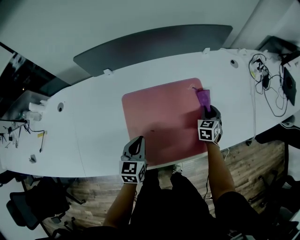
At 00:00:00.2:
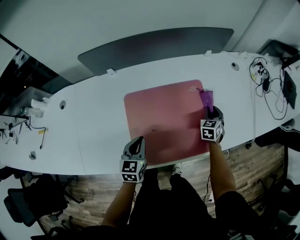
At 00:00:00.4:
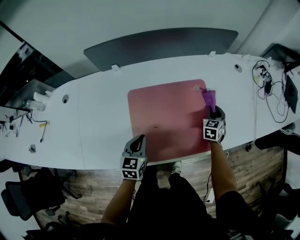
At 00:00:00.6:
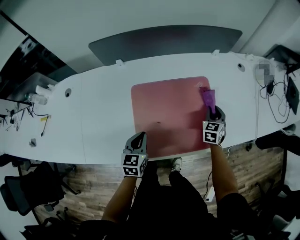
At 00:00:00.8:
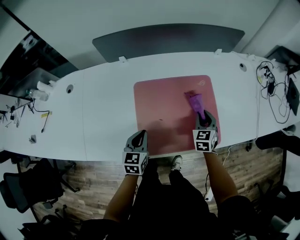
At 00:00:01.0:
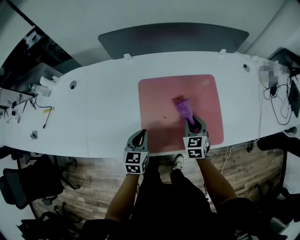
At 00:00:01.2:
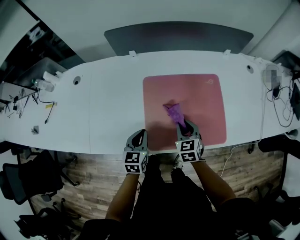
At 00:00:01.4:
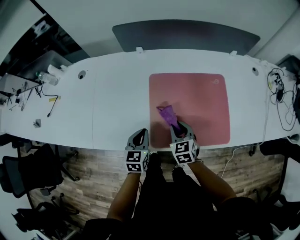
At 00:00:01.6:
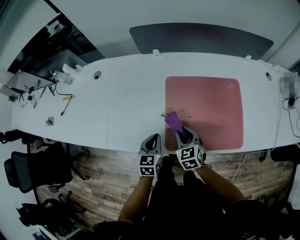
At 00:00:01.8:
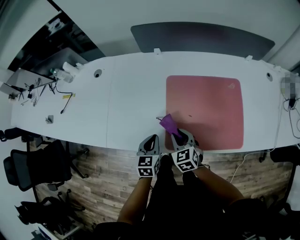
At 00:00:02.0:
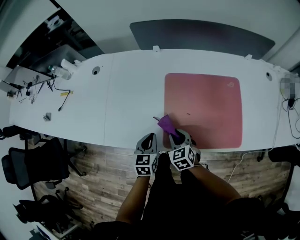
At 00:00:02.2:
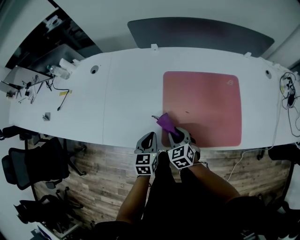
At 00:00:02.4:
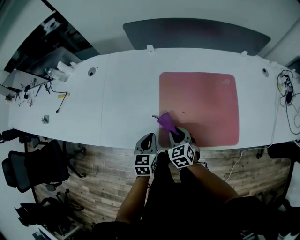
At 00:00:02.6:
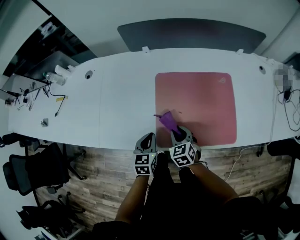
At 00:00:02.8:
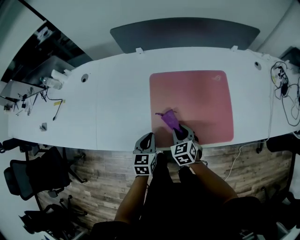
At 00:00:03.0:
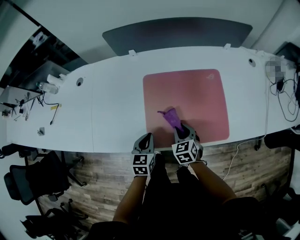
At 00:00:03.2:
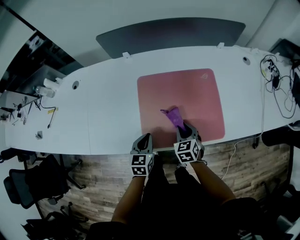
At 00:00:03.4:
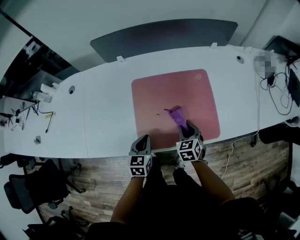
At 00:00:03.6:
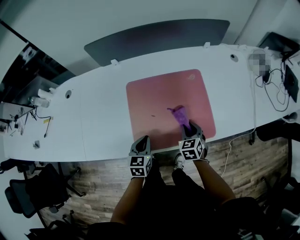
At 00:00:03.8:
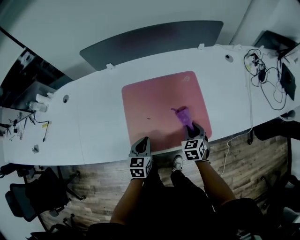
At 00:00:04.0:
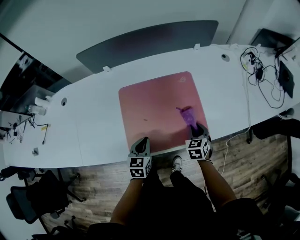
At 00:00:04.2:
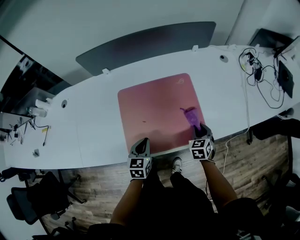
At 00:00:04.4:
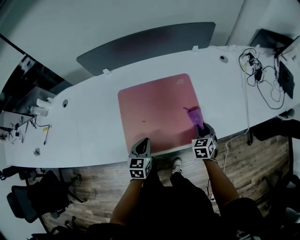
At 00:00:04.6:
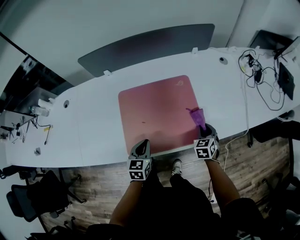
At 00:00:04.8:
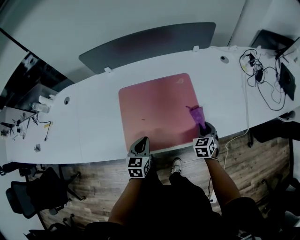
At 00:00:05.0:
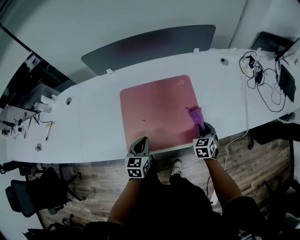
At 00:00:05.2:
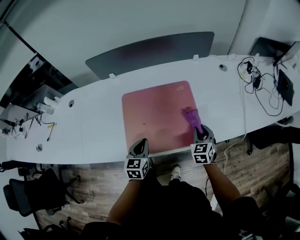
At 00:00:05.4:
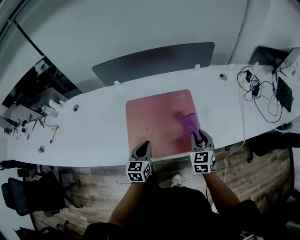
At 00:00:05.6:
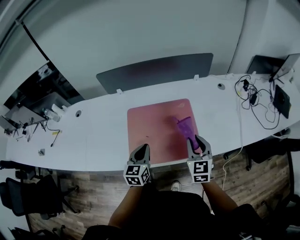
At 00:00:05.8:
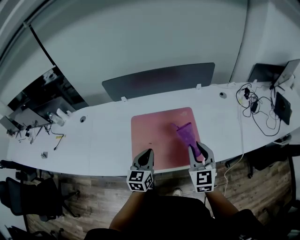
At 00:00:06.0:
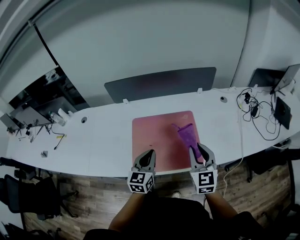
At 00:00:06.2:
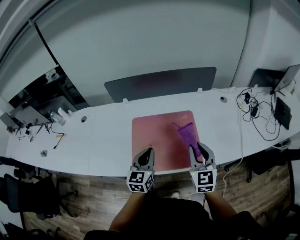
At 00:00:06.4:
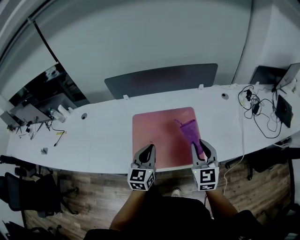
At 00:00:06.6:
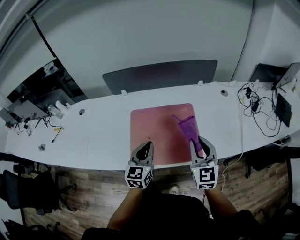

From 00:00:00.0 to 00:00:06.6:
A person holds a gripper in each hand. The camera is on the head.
From 00:00:00.0 to 00:00:01.6: The right gripper ends up some 35 cm from where it was, and turns by some 40 degrees; the left gripper moves about 15 cm.
From 00:00:01.6 to 00:00:03.2: The right gripper is displaced to the right by roughly 10 cm. The left gripper travels to the right by some 5 cm.
From 00:00:03.2 to 00:00:05.0: The right gripper shifts some 20 cm to the right. The left gripper is displaced to the right by approximately 10 cm.
From 00:00:05.0 to 00:00:06.6: The right gripper shifts about 25 cm upward, and points its fingers approximately 30 degrees further upward. Meanwhile the left gripper heads upward, covering about 15 cm, and turns by some 20 degrees.

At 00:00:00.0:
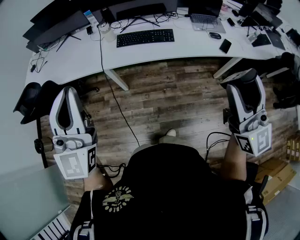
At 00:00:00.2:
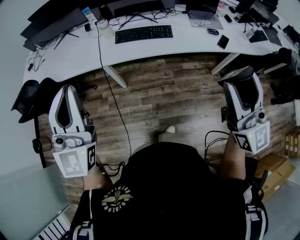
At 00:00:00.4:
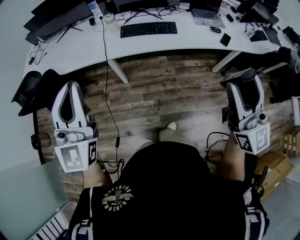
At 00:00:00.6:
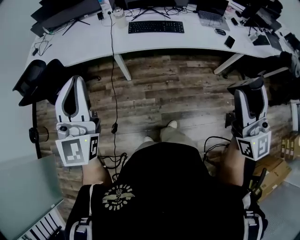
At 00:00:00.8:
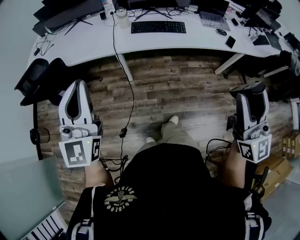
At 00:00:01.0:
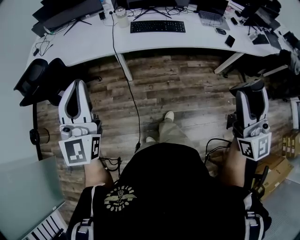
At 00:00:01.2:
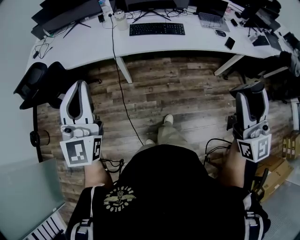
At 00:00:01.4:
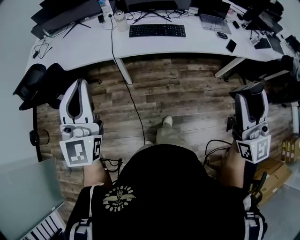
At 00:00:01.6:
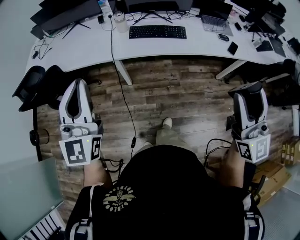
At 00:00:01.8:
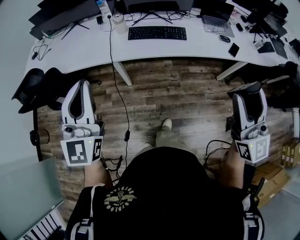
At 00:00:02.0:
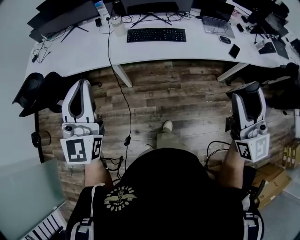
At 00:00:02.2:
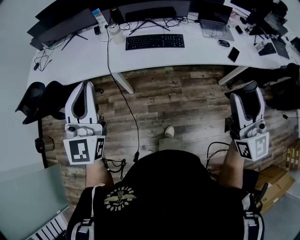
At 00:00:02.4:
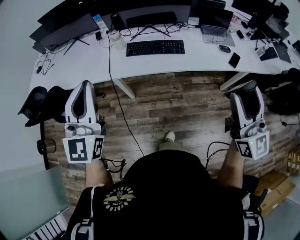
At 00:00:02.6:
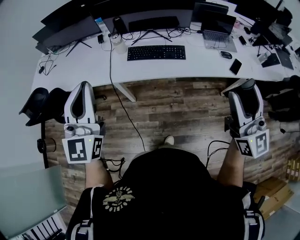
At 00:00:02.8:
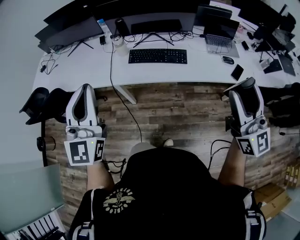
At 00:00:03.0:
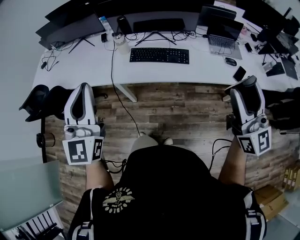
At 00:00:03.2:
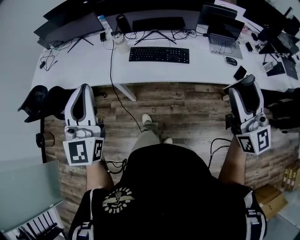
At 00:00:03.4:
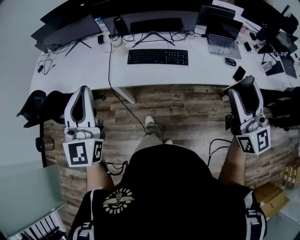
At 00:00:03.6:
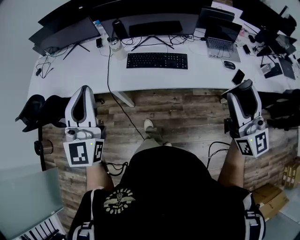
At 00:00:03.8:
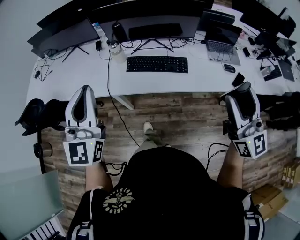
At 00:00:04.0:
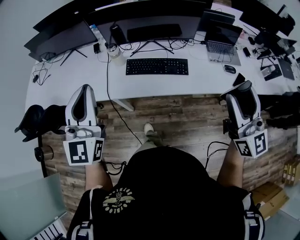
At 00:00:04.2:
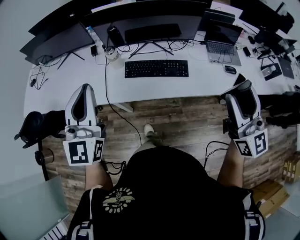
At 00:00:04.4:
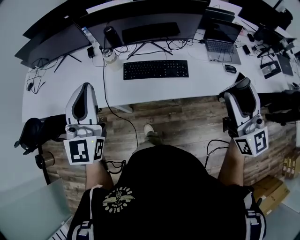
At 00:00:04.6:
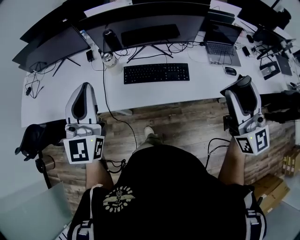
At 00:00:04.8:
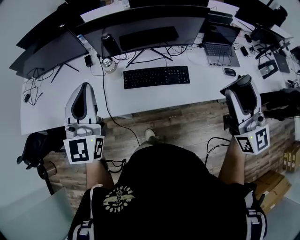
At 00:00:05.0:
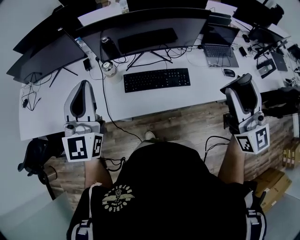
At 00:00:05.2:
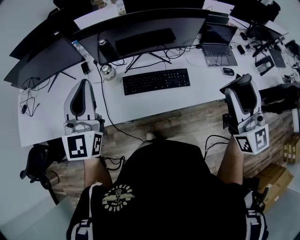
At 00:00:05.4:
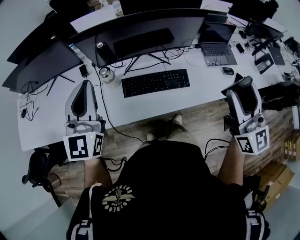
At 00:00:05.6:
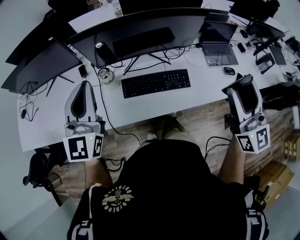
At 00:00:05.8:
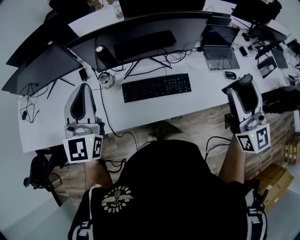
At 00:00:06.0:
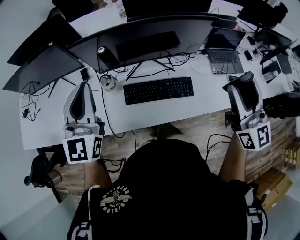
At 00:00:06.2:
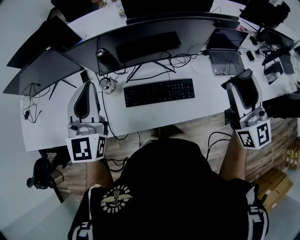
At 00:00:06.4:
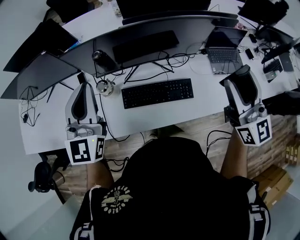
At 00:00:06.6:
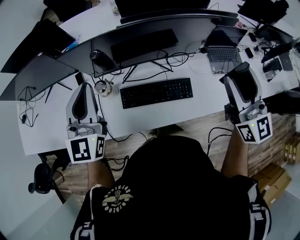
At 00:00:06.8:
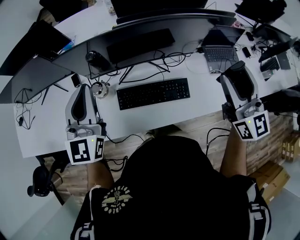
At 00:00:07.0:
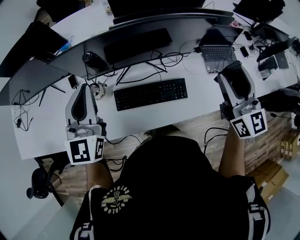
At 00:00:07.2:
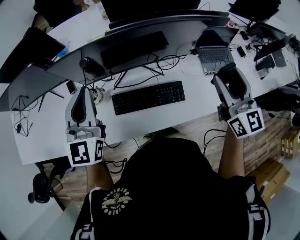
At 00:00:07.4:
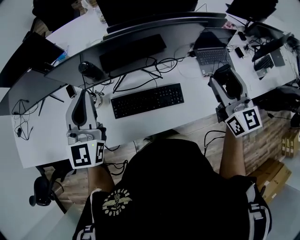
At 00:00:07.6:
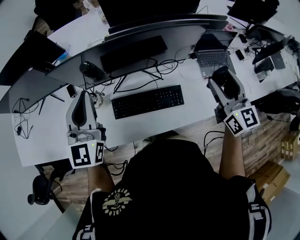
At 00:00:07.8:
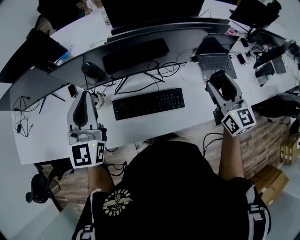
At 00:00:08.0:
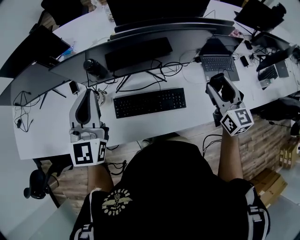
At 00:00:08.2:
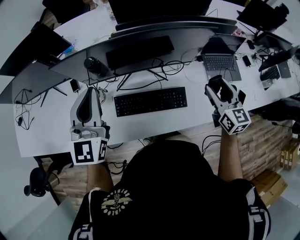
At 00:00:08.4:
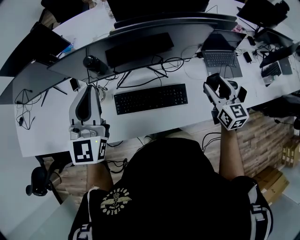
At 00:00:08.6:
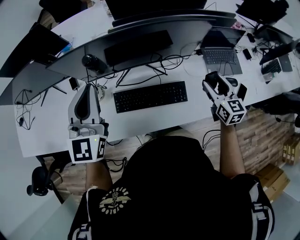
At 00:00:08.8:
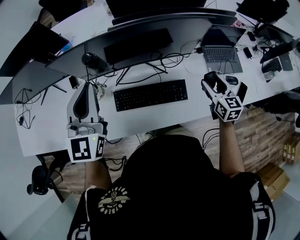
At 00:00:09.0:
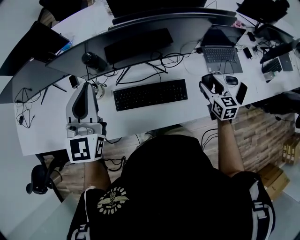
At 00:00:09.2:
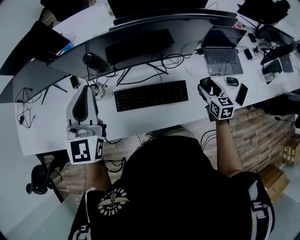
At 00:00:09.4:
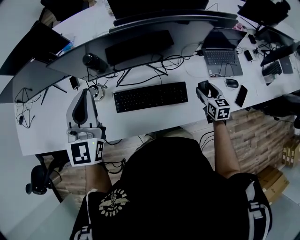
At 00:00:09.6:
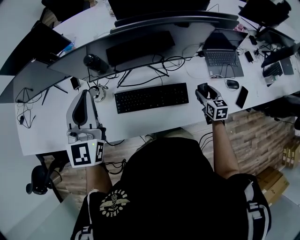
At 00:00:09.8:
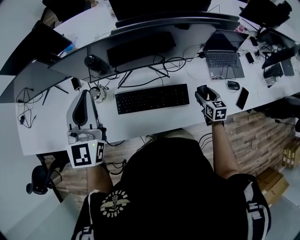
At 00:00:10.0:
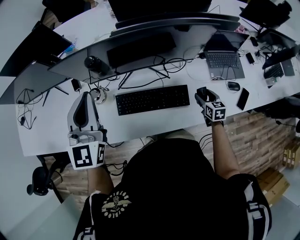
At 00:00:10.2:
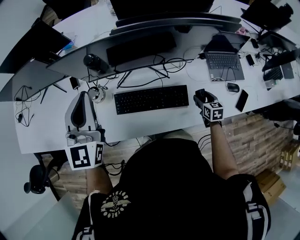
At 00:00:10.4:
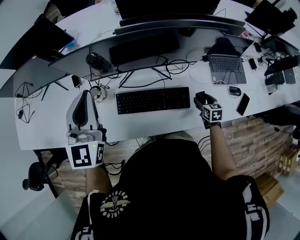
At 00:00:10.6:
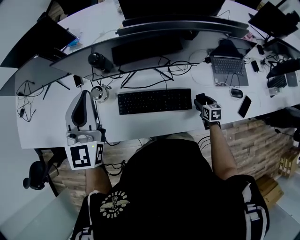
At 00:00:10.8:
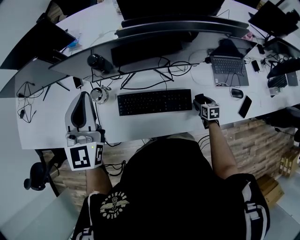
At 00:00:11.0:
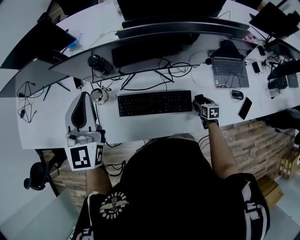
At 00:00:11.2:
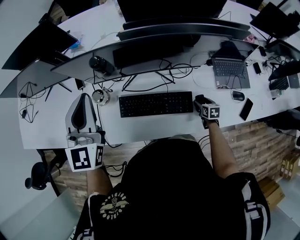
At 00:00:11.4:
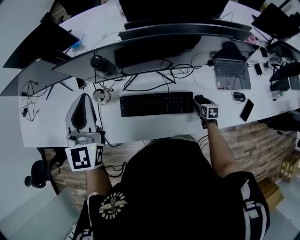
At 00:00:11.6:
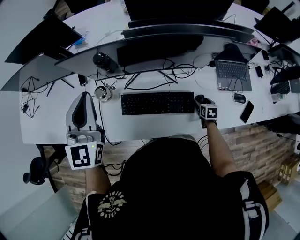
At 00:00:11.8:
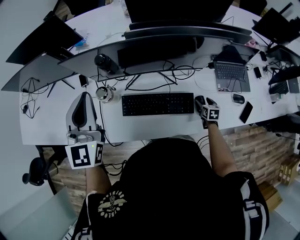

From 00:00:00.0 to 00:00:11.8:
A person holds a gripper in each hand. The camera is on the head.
From 00:00:00.0 to 00:00:01.4: The left gripper goes roughly 10 cm to the left. Meanwhile the right gripper shifts about 10 cm to the left and backward.
From 00:00:01.4 to 00:00:03.0: Both grippers travel together forward and to the right, roughly 20 cm.
From 00:00:03.0 to 00:00:04.4: Both grippers travel together forward, some 15 cm.
From 00:00:04.4 to 00:00:06.0: Both grippers move forward, about 20 cm.
From 00:00:06.0 to 00:00:07.4: The left gripper travels forward and to the right by approximately 10 cm. The right gripper heads forward and downward, covering approximately 10 cm.
From 00:00:07.4 to 00:00:08.8: The right gripper moves downward, about 20 cm, and swivels roughly 20 degrees.
From 00:00:08.8 to 00:00:10.4: The right gripper goes approximately 20 cm downward, and changes its angle by roughly 20 degrees.
From 00:00:10.4 to 00:00:11.8: The right gripper is displaced downward by about 5 cm.

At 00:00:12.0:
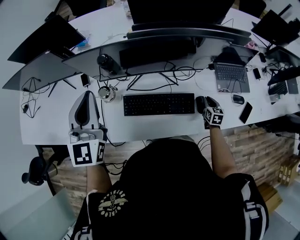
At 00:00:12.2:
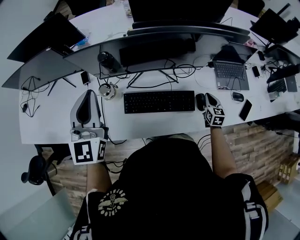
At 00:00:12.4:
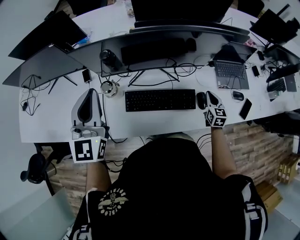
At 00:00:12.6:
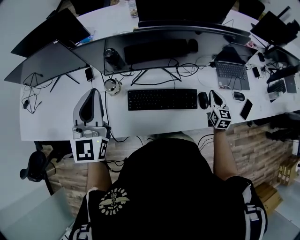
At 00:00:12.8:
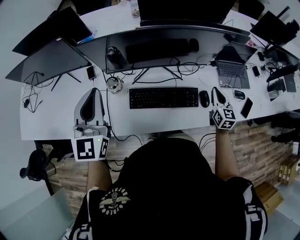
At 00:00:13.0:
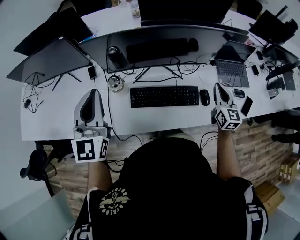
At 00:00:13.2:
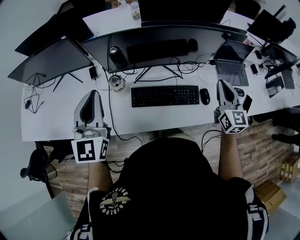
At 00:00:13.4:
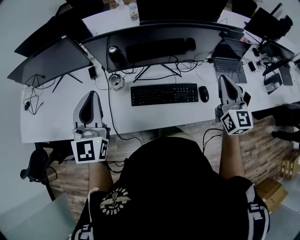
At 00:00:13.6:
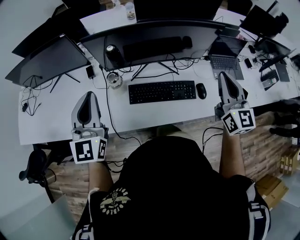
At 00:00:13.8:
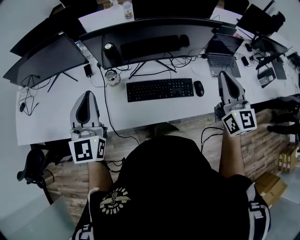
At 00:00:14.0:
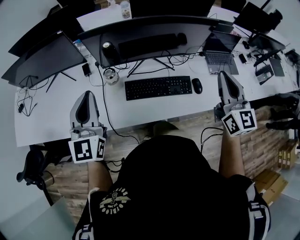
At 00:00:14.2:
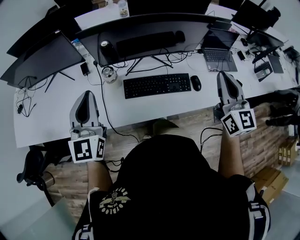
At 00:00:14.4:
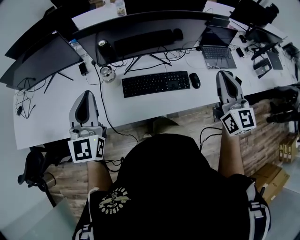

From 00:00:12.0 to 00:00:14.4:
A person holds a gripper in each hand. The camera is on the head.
From 00:00:12.0 to 00:00:13.2: The right gripper is displaced upward by approximately 30 cm, and angles its fingers upward, by some 40 degrees. The left gripper goes approximately 10 cm backward.
From 00:00:13.2 to 00:00:14.4: The left gripper moves backward, roughly 5 cm, while the right gripper is displaced backward and upward by approximately 15 cm.

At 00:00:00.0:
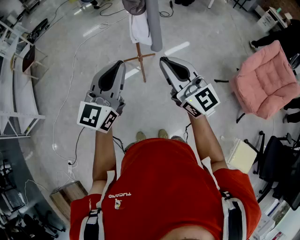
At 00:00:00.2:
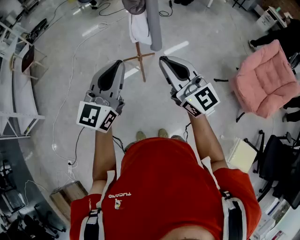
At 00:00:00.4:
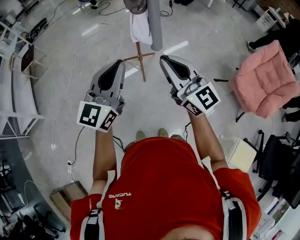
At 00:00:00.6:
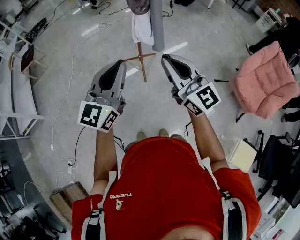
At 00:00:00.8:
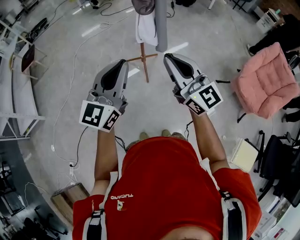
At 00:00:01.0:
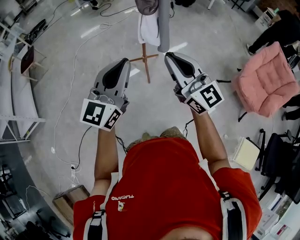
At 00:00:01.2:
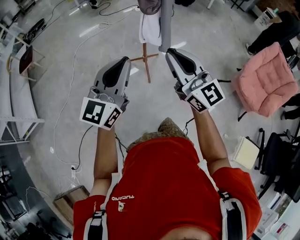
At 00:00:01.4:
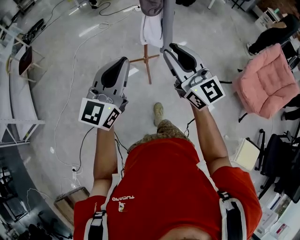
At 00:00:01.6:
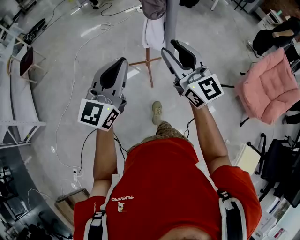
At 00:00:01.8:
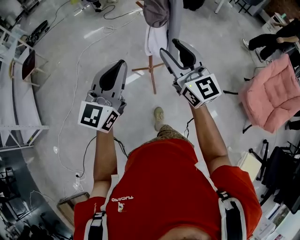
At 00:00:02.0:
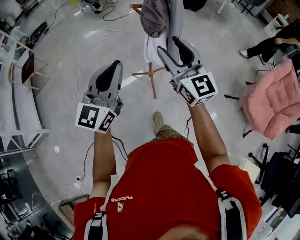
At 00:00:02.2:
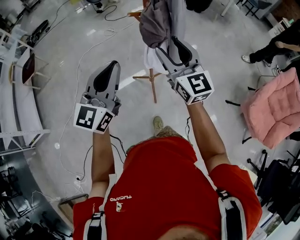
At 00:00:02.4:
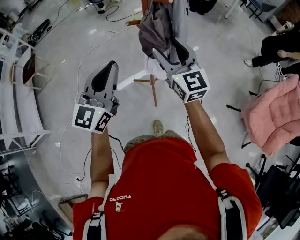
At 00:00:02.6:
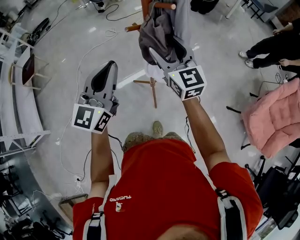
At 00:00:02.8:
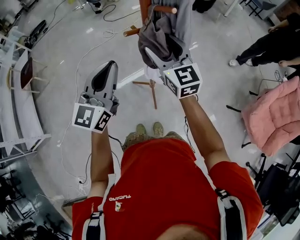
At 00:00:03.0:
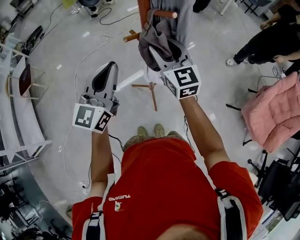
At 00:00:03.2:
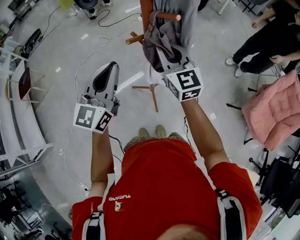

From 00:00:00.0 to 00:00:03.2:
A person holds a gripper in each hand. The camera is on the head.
From 00:00:00.0 to 00:00:01.6: Both grippers travel together forward and to the left, about 15 cm. The right gripper opens.
From 00:00:01.6 to 00:00:03.2: Both grippers travel together forward, roughly 35 cm. The right gripper closes its fingers.
